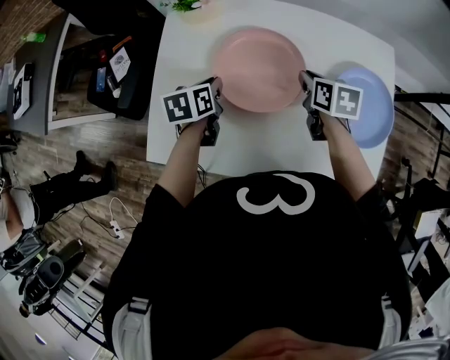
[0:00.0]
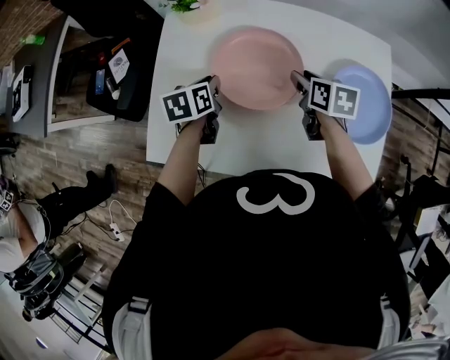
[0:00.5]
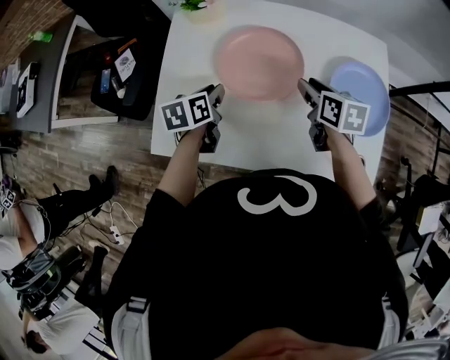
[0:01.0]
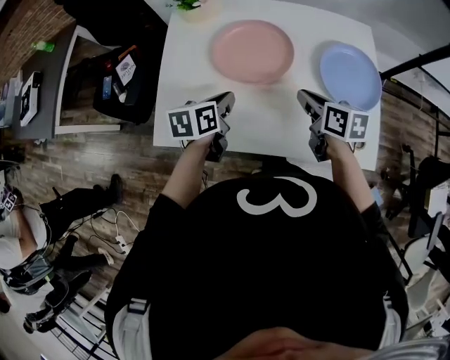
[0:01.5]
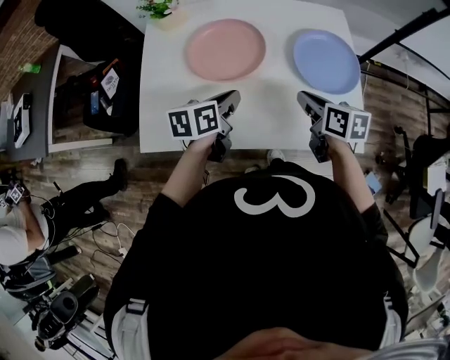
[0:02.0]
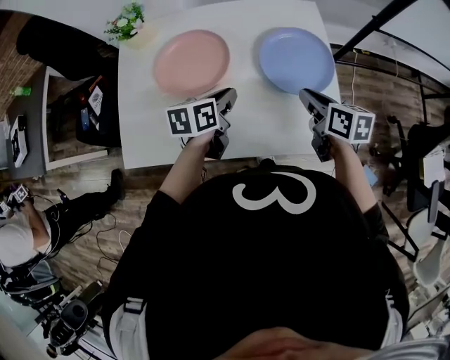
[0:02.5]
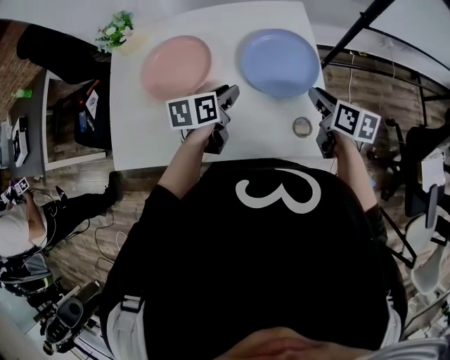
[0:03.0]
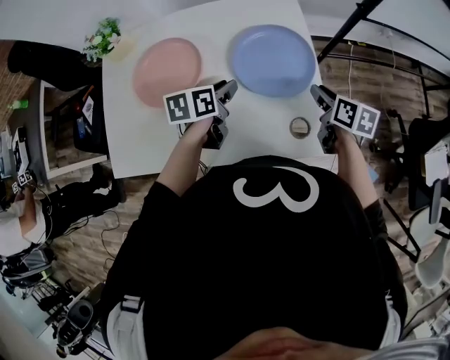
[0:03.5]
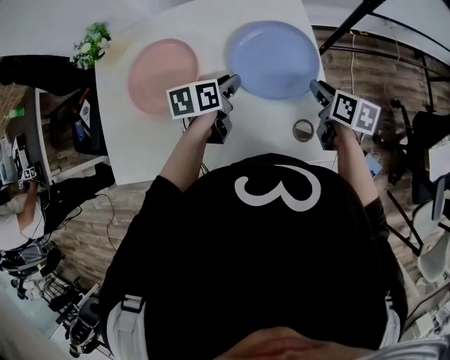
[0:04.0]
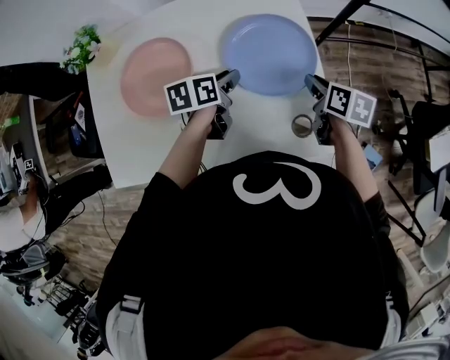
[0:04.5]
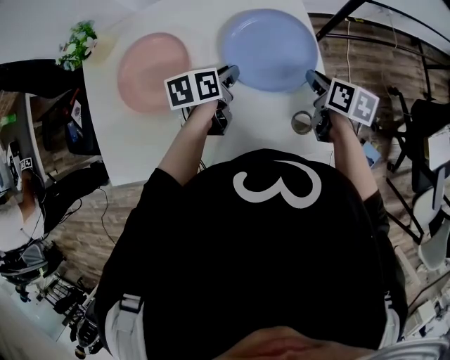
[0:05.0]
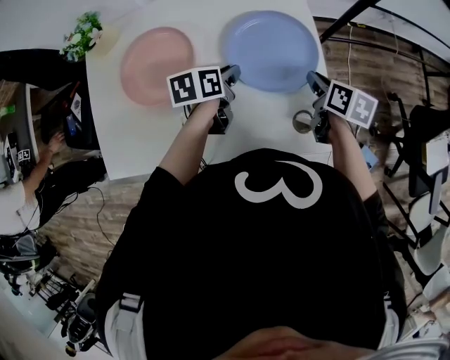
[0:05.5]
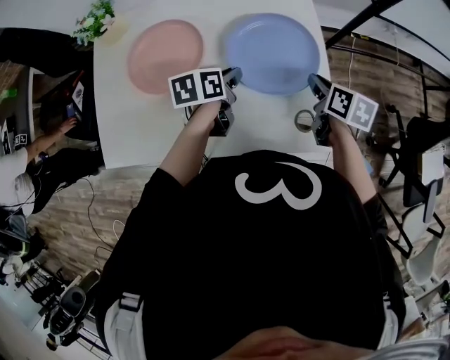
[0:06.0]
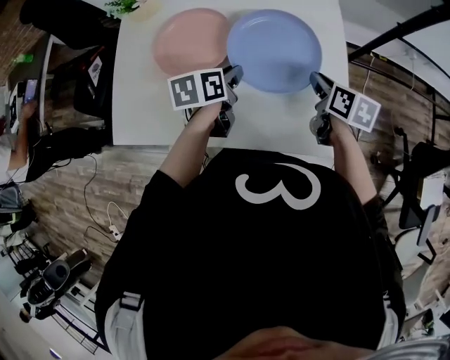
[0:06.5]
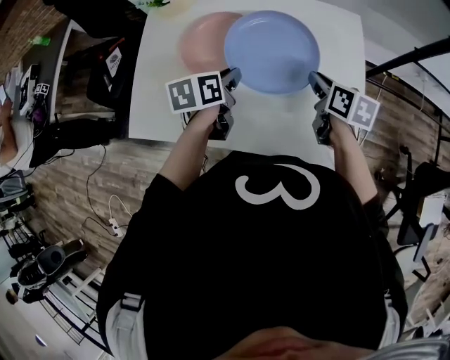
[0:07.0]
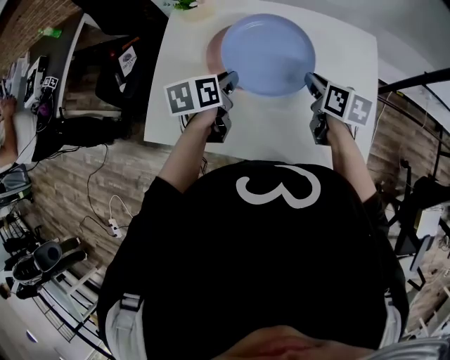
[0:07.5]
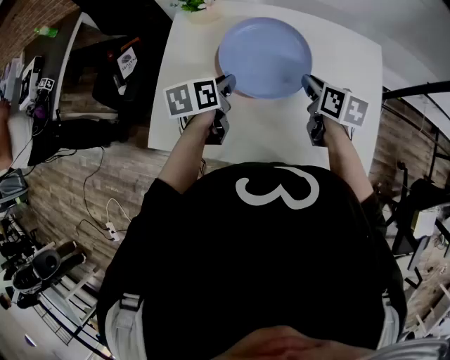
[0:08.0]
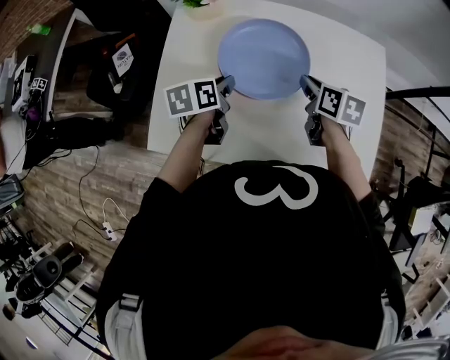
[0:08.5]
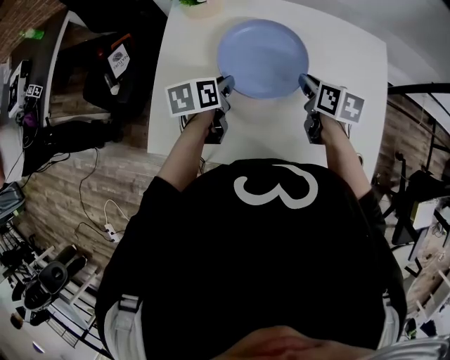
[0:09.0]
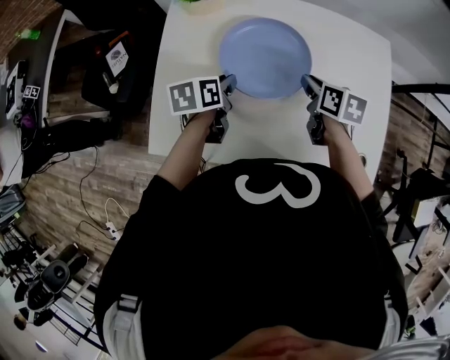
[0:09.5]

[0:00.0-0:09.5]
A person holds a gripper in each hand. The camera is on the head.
0:00.0 to 0:02.0: The right gripper is displaced backward by some 20 cm, and opens, then closes again, while the left gripper travels backward, to the right and upward by some 20 cm, and changes its angle by approximately 20 degrees.
0:02.0 to 0:04.0: The grippers both shift to the right and forward by about 25 cm. The left gripper opens.
0:04.0 to 0:05.5: The grippers make only small movements.
0:05.5 to 0:07.5: The right gripper is displaced to the left by approximately 25 cm, and swivels some 20 degrees; the left gripper travels to the left and upward by roughly 25 cm, and swivels approximately 20 degrees.
0:07.5 to 0:09.5: The right gripper heads to the left and downward, covering about 10 cm; the left gripper heads downward and to the left, covering approximately 10 cm.

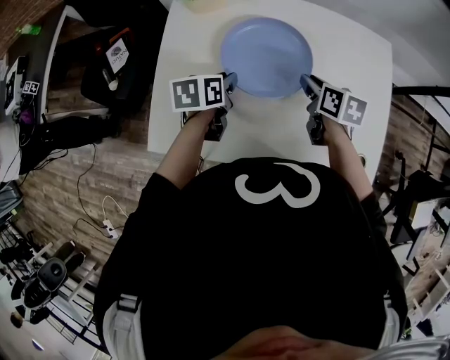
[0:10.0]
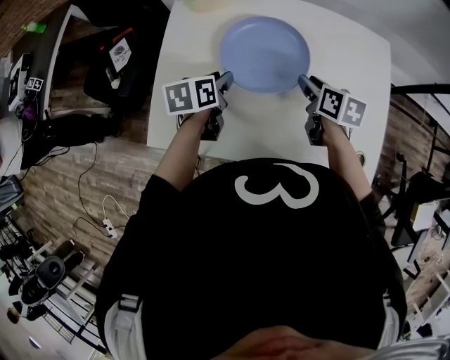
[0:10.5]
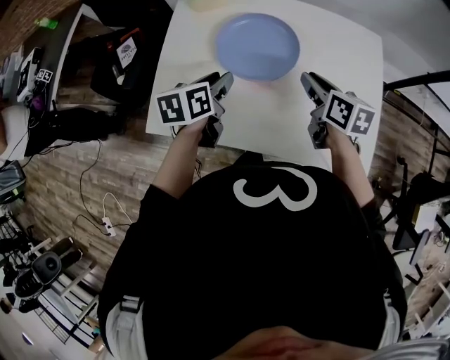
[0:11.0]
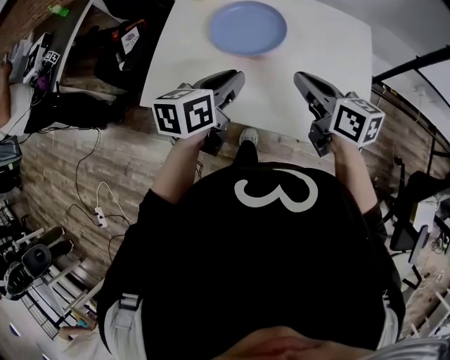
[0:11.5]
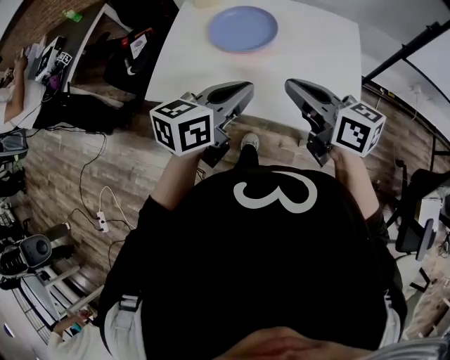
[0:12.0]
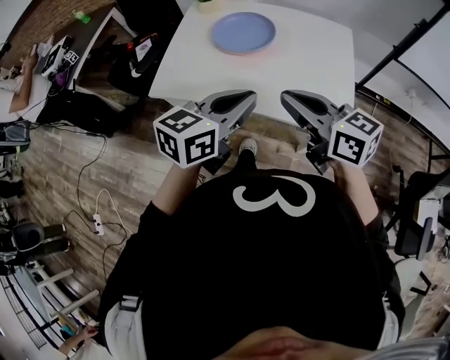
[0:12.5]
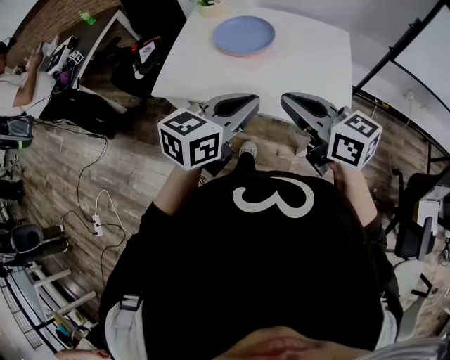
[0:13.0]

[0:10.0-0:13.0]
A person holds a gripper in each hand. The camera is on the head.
0:10.0 to 0:11.5: The left gripper shifts roughly 25 cm backward, upward and to the right, and rotates approximately 20 degrees; the right gripper moves backward and upward, roughly 20 cm, and turns by some 30 degrees.
0:11.5 to 0:13.0: The grippers both shift backward and upward by about 20 cm. The left gripper turns by about 20 degrees. The right gripper rotates some 20 degrees.

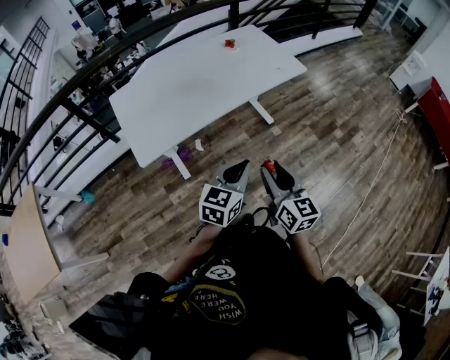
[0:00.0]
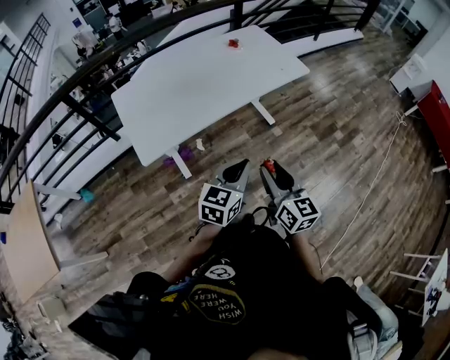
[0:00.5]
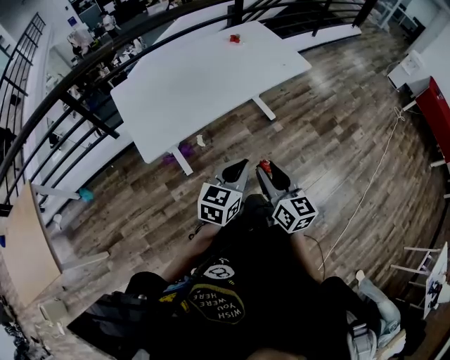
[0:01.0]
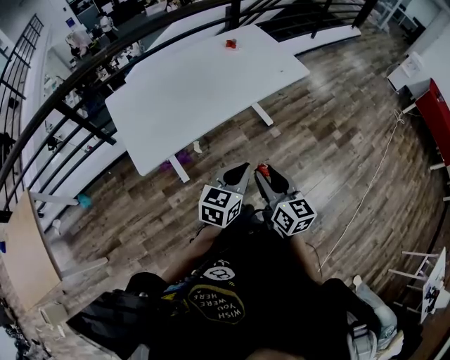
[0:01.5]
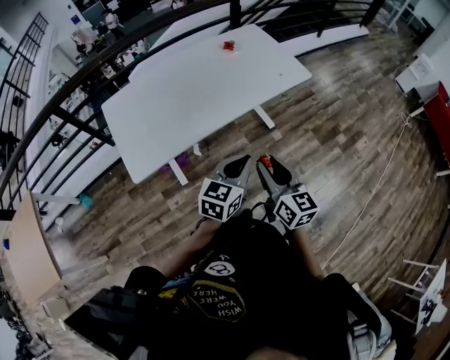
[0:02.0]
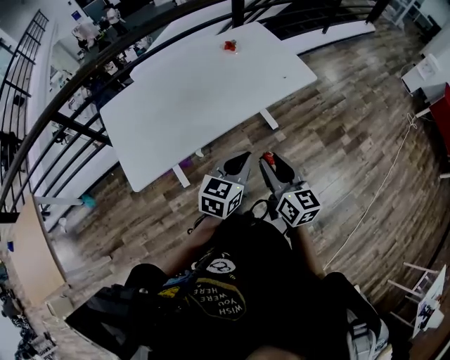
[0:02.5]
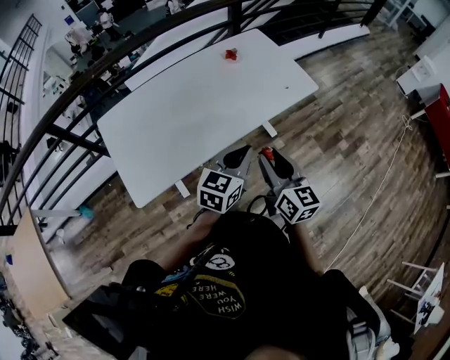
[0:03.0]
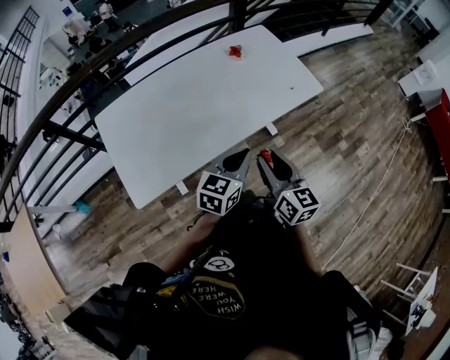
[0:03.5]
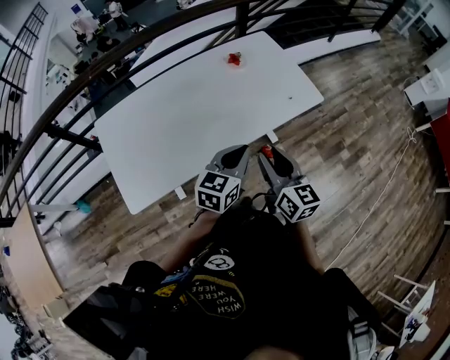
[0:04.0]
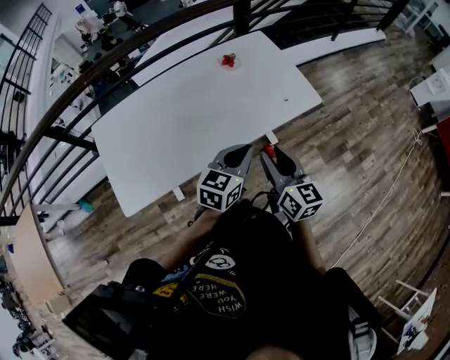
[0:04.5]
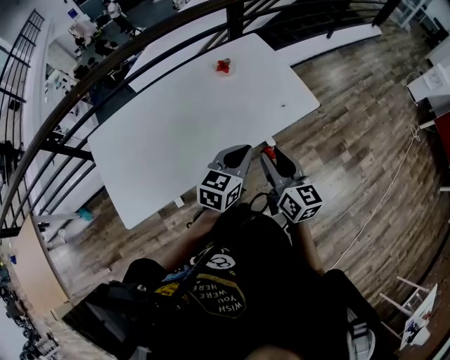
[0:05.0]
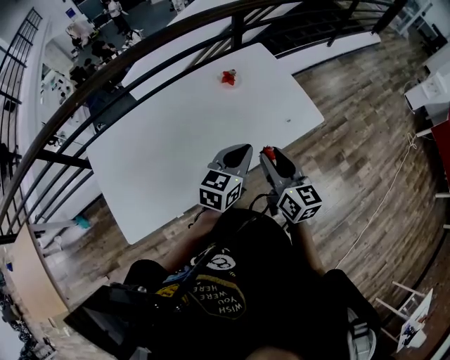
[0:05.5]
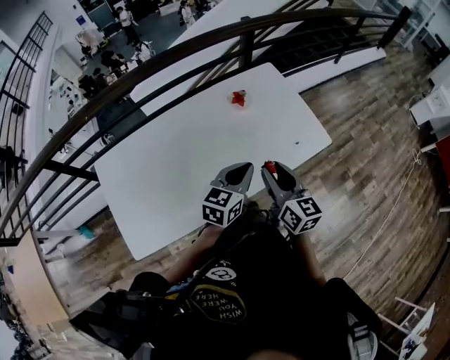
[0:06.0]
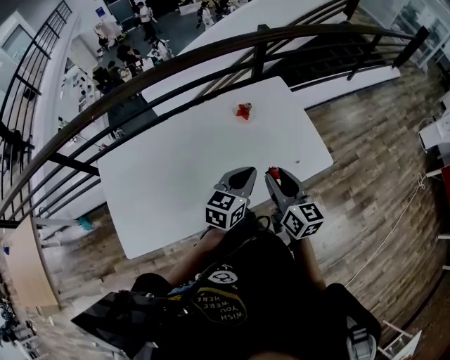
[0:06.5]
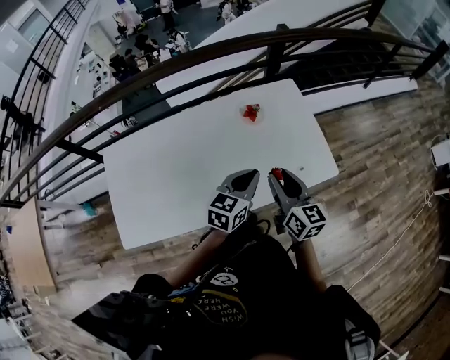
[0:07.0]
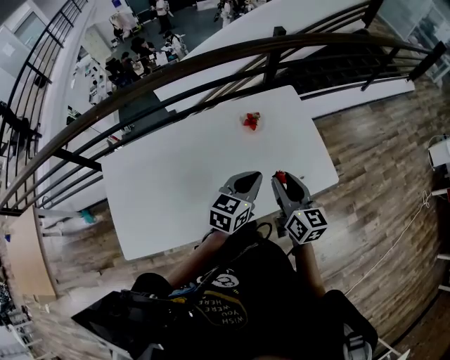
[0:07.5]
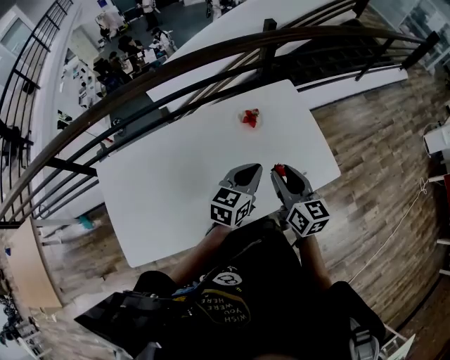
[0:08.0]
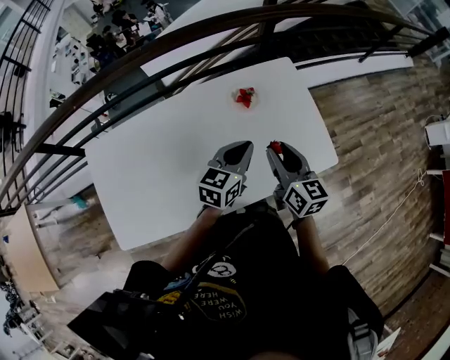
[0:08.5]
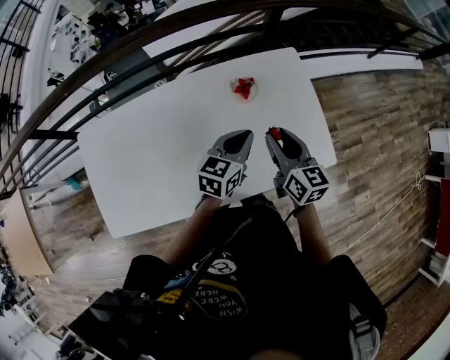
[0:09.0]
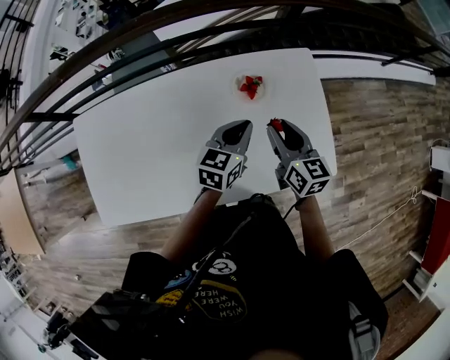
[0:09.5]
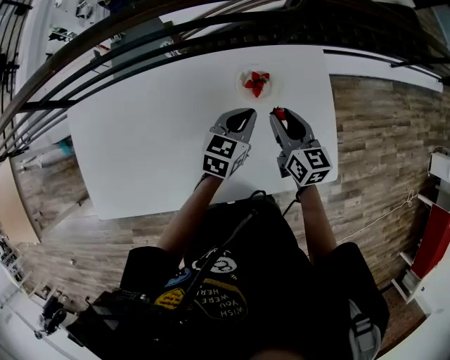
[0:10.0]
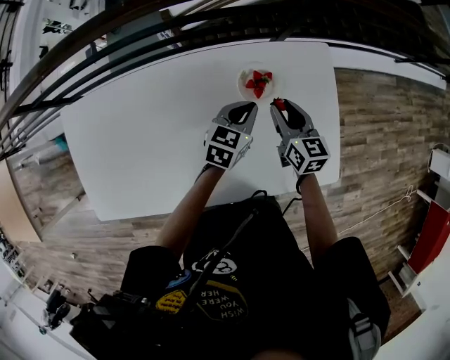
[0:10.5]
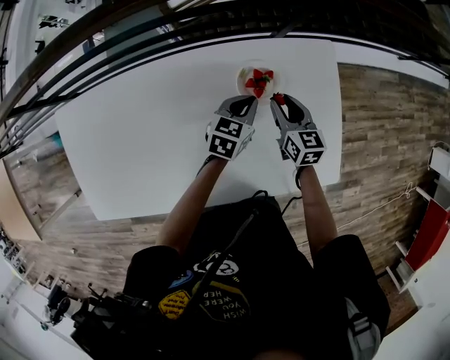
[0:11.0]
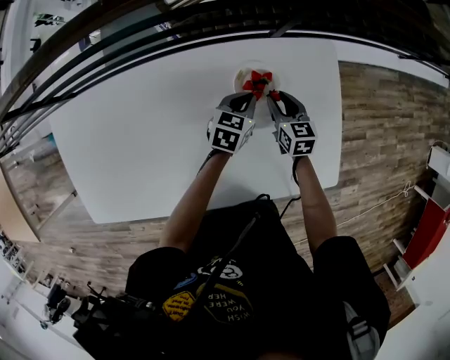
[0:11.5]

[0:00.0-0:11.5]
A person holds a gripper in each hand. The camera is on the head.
0:00.0 to 0:02.0: Both grippers travel together forward, approximately 10 cm.
0:02.0 to 0:04.0: The grippers both shift forward by some 25 cm.
0:04.0 to 0:06.0: Both grippers travel together forward, about 20 cm.
0:06.0 to 0:07.5: Both grippers move forward, approximately 10 cm.
0:07.5 to 0:09.5: Both grippers move forward and downward, approximately 20 cm.
0:09.5 to 0:11.5: Both grippers move downward and forward, some 25 cm.

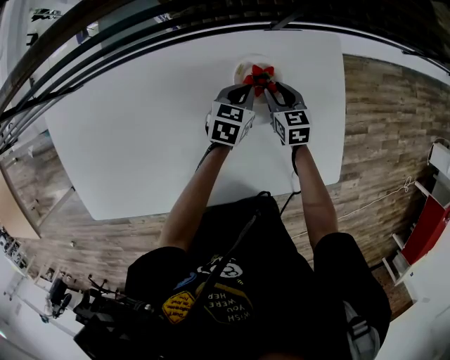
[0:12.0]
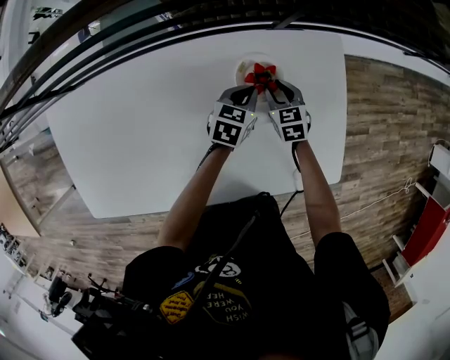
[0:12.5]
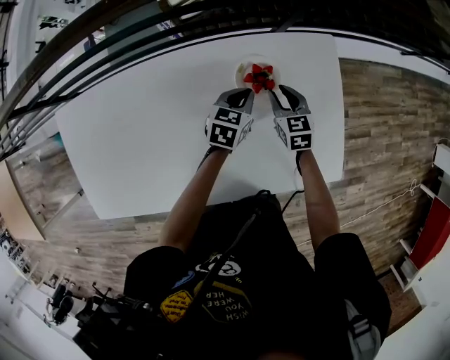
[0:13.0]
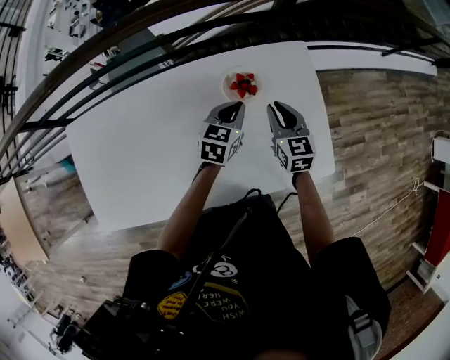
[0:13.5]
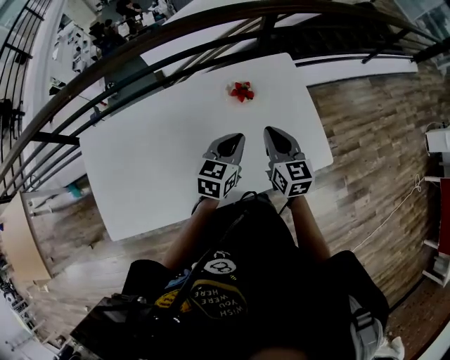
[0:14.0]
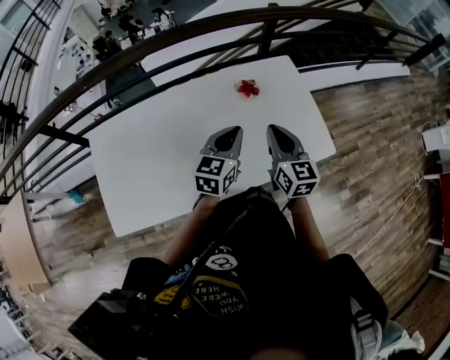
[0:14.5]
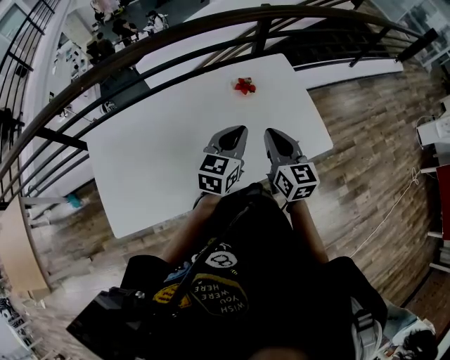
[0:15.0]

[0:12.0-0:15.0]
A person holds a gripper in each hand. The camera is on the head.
0:12.0 to 0:13.5: The two grippers go about 15 cm upward and backward.
0:13.5 to 0:15.0: Both grippers move backward and upward, roughly 30 cm.
